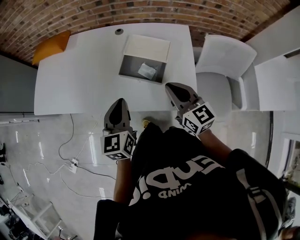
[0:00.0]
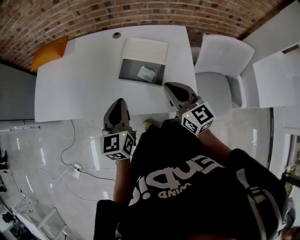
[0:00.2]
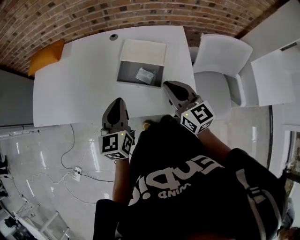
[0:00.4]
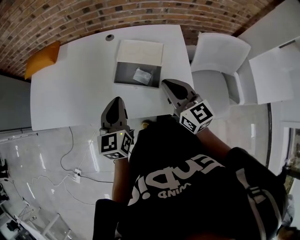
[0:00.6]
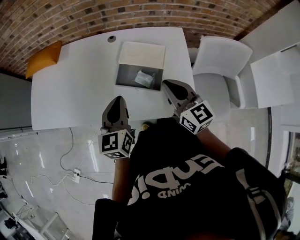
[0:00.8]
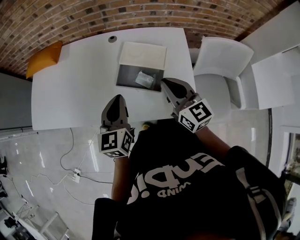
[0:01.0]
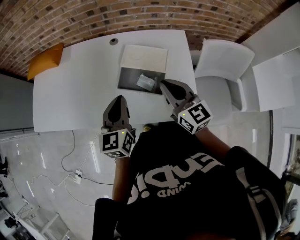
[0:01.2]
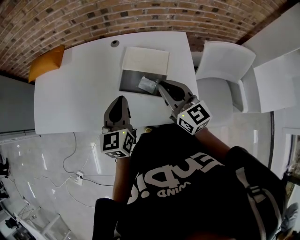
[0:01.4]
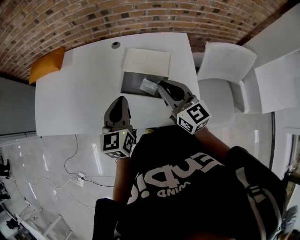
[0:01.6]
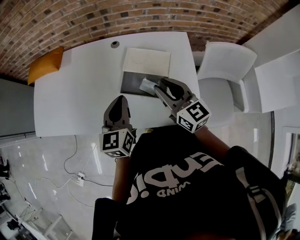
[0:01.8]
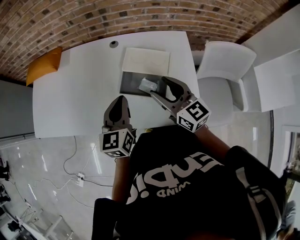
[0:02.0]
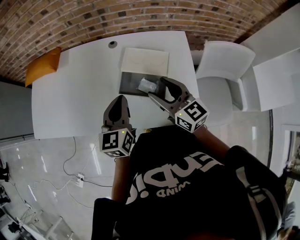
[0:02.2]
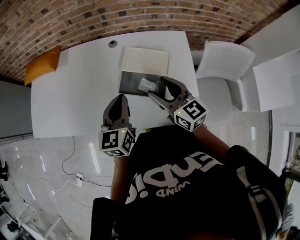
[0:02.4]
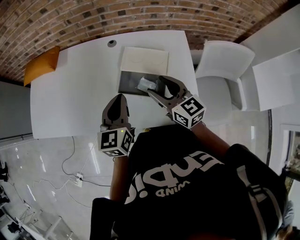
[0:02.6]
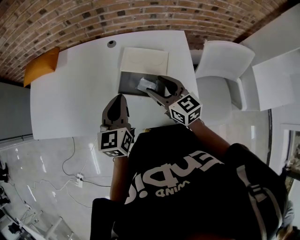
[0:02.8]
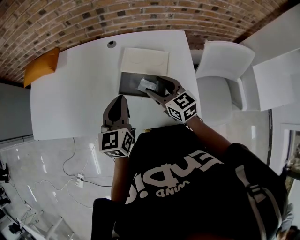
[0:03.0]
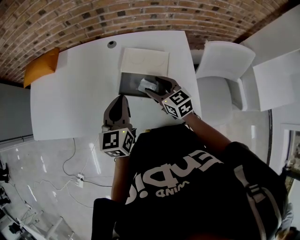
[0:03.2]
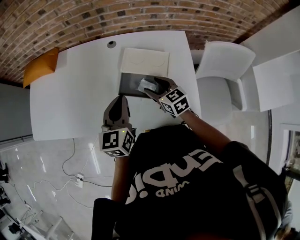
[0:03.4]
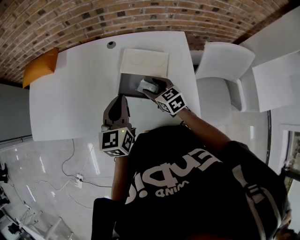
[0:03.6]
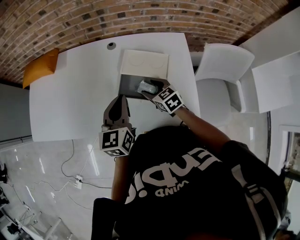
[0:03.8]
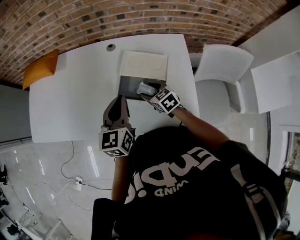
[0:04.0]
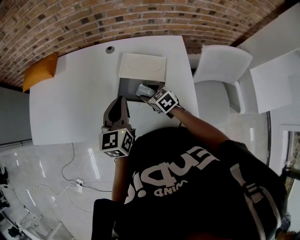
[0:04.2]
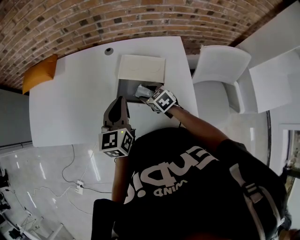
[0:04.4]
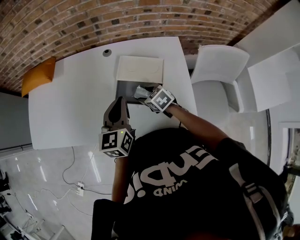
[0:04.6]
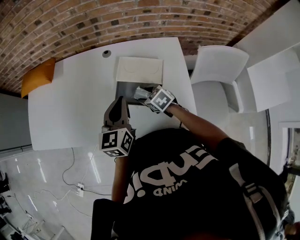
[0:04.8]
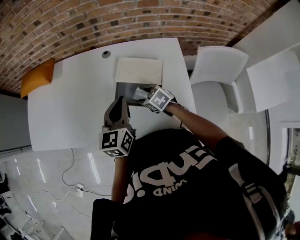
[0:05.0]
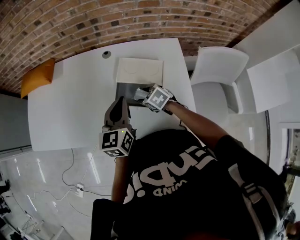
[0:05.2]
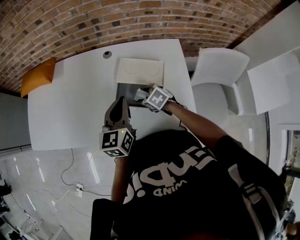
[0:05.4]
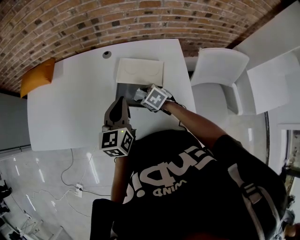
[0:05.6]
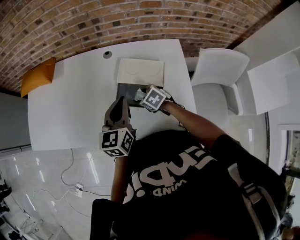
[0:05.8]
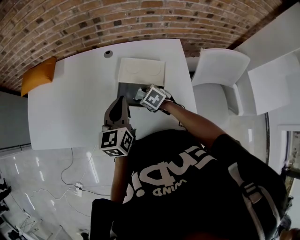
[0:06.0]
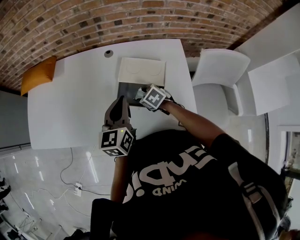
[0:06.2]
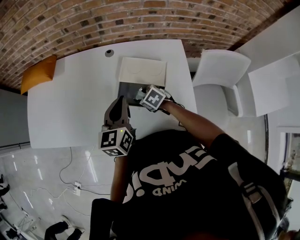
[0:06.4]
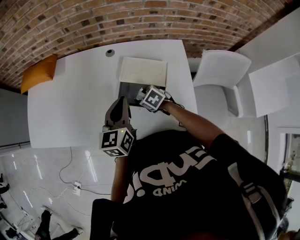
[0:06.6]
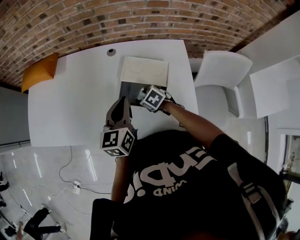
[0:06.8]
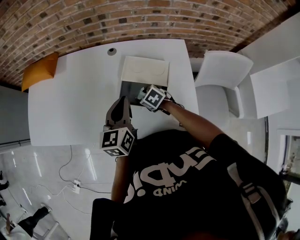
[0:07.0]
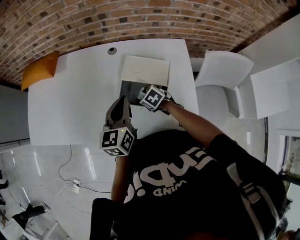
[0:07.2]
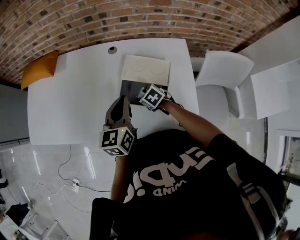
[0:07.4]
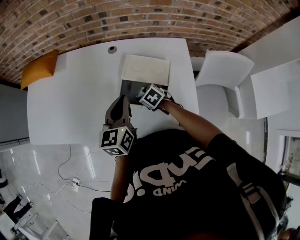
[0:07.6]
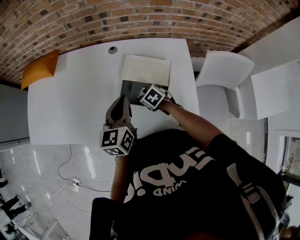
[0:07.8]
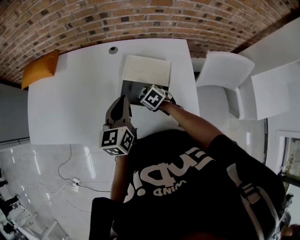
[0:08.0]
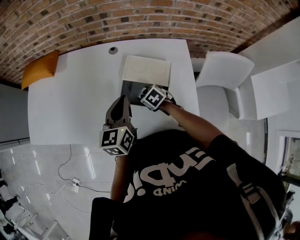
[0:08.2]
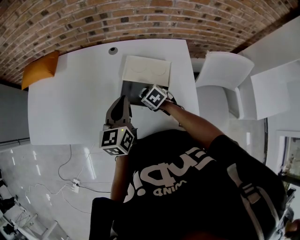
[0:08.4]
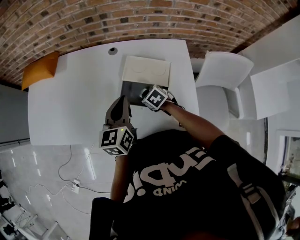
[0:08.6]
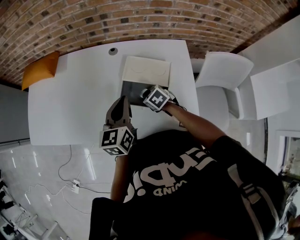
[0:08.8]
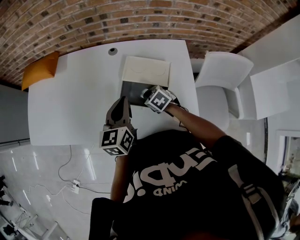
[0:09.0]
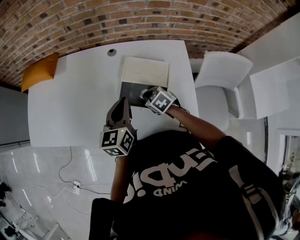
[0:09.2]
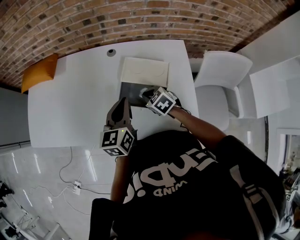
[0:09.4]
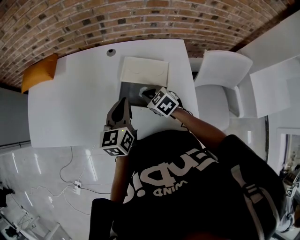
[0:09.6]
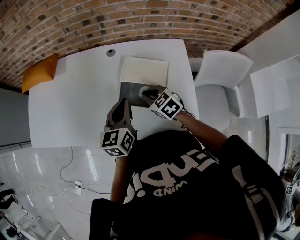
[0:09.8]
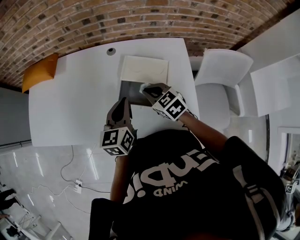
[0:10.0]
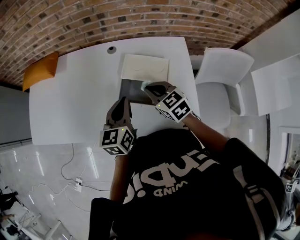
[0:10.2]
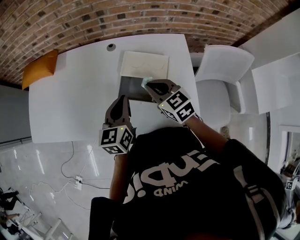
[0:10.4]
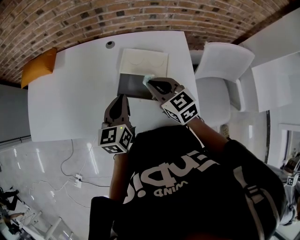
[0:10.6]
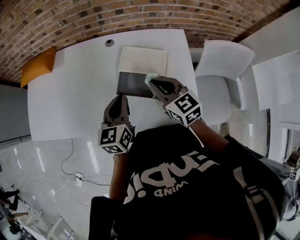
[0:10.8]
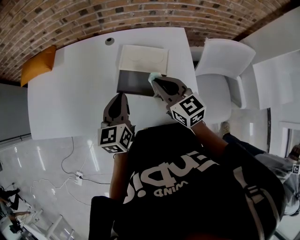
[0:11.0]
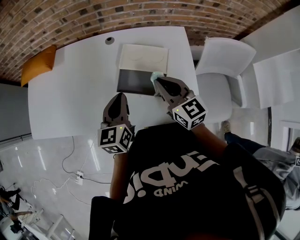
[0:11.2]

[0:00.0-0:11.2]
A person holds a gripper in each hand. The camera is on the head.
0:00.0 to 0:01.6: The grippers both shift forward by some 10 cm.
0:01.6 to 0:03.2: The right gripper travels downward by approximately 10 cm, and opens its fingers.
0:03.2 to 0:04.8: The right gripper moves downward, approximately 10 cm, and turns by approximately 30 degrees.
0:04.8 to 0:06.4: There are only small adjustments of the grippers.
0:06.4 to 0:08.0: The right gripper closes.
0:08.0 to 0:09.6: The right gripper goes about 10 cm upward.
0:09.6 to 0:11.2: The right gripper is displaced upward by approximately 15 cm, and points its fingers approximately 40 degrees further upward.

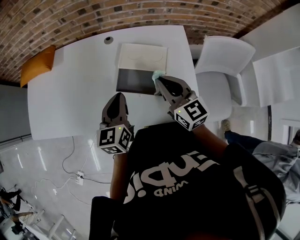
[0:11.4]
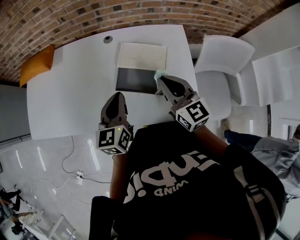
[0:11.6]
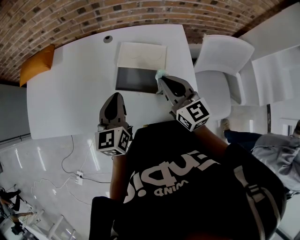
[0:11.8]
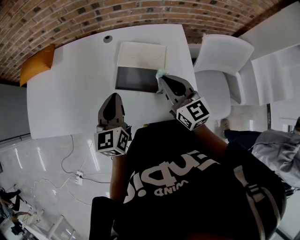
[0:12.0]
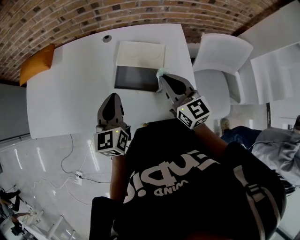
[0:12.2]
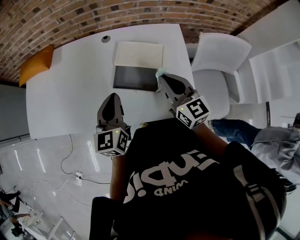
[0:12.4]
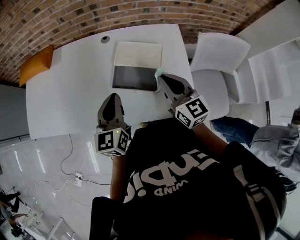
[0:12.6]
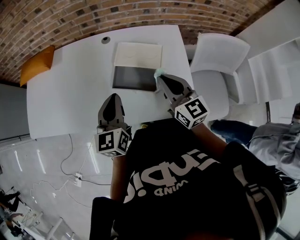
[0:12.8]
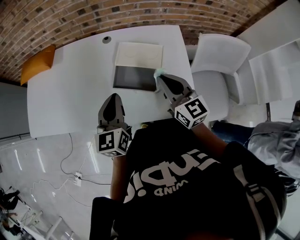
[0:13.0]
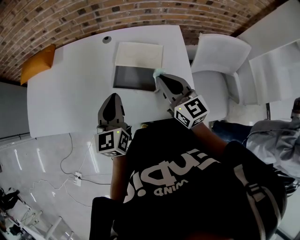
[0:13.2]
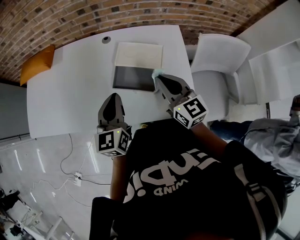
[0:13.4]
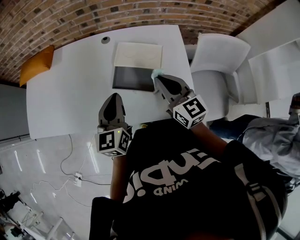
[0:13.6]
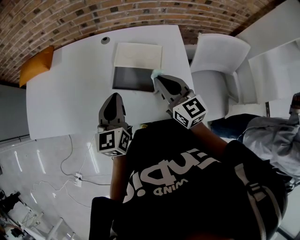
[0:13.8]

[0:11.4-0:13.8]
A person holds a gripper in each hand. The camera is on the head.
0:11.4 to 0:12.6: The grippers move only a little.
0:12.6 to 0:13.8: The two grippers keep their place.

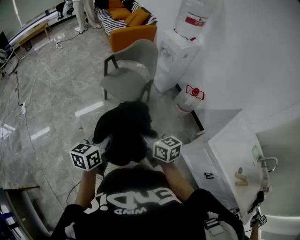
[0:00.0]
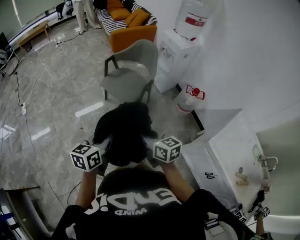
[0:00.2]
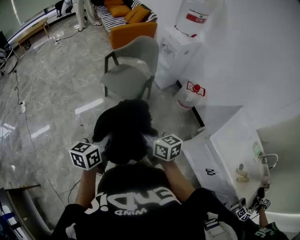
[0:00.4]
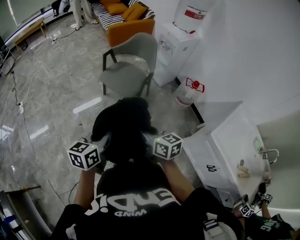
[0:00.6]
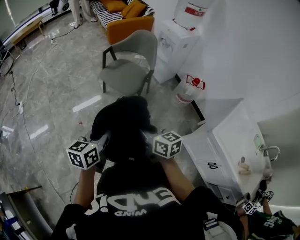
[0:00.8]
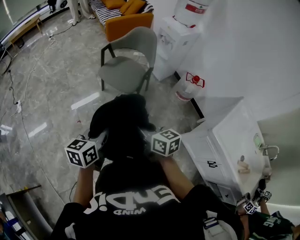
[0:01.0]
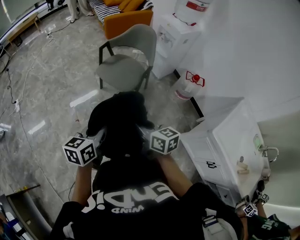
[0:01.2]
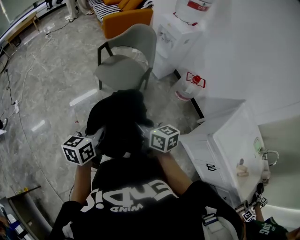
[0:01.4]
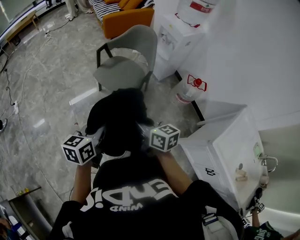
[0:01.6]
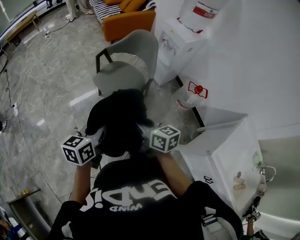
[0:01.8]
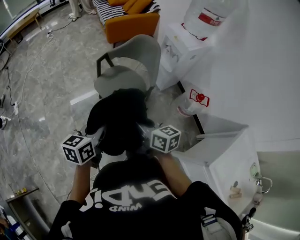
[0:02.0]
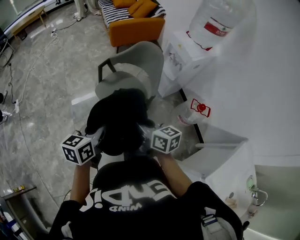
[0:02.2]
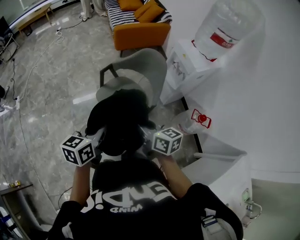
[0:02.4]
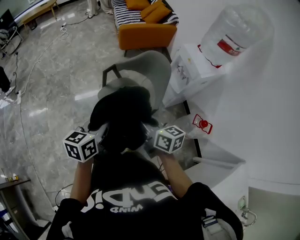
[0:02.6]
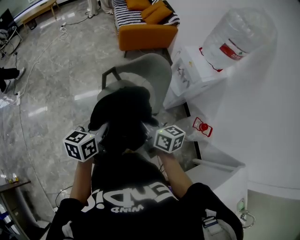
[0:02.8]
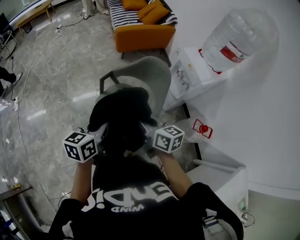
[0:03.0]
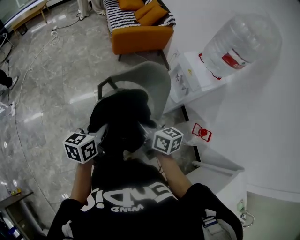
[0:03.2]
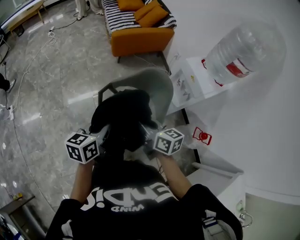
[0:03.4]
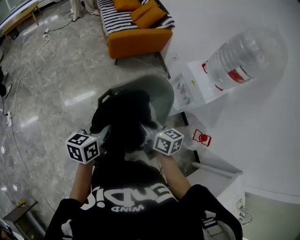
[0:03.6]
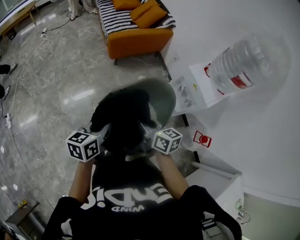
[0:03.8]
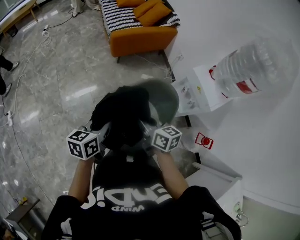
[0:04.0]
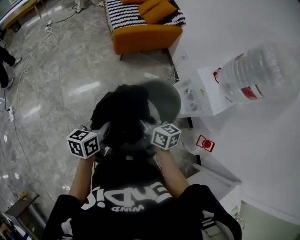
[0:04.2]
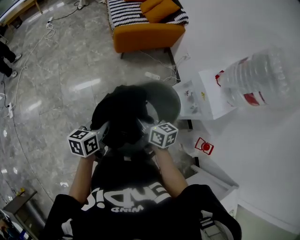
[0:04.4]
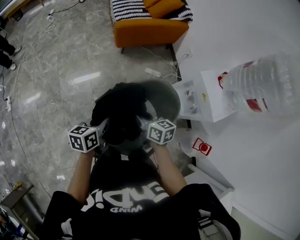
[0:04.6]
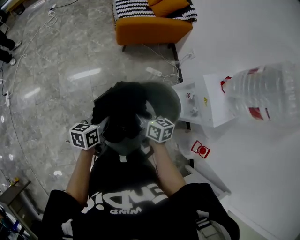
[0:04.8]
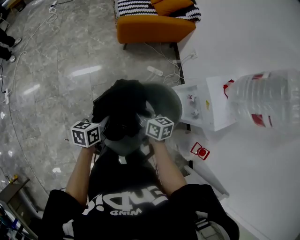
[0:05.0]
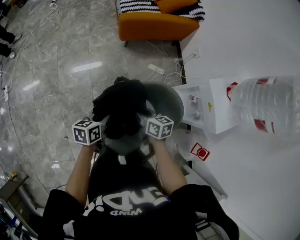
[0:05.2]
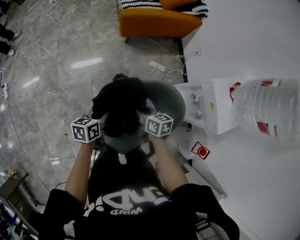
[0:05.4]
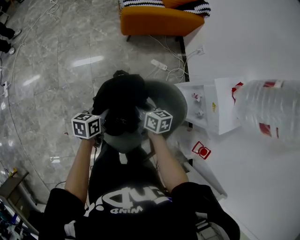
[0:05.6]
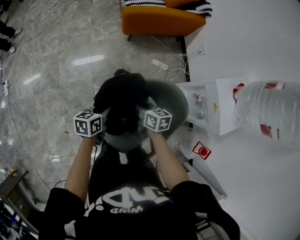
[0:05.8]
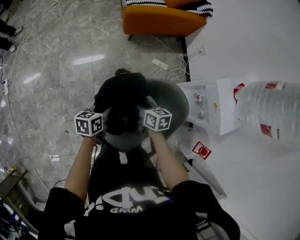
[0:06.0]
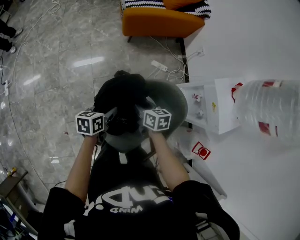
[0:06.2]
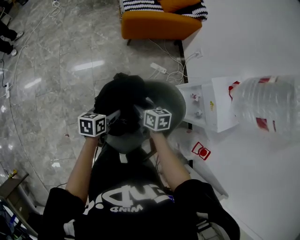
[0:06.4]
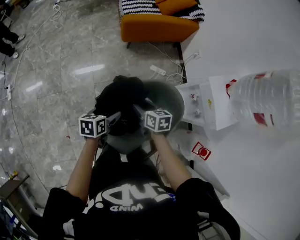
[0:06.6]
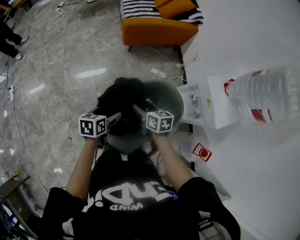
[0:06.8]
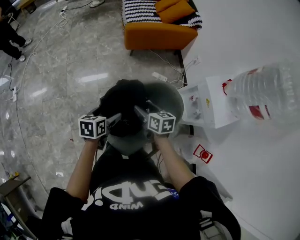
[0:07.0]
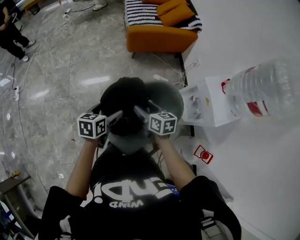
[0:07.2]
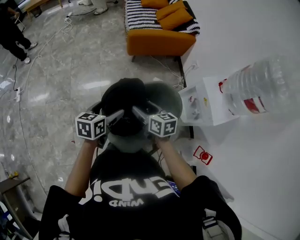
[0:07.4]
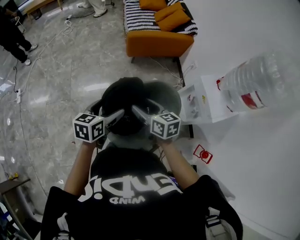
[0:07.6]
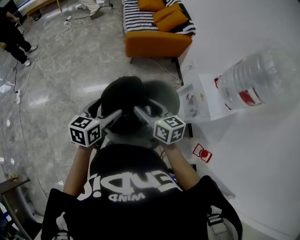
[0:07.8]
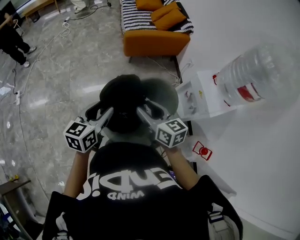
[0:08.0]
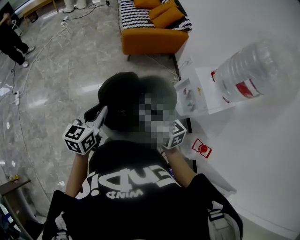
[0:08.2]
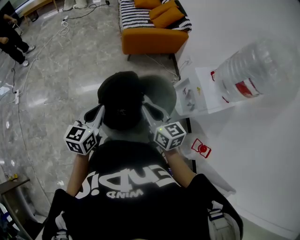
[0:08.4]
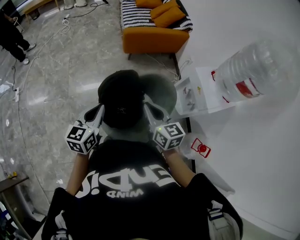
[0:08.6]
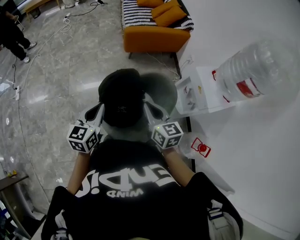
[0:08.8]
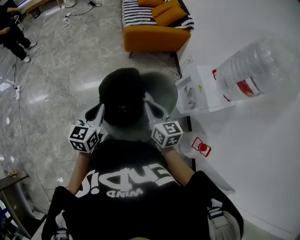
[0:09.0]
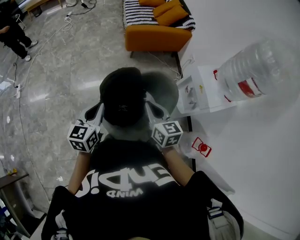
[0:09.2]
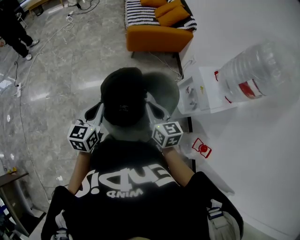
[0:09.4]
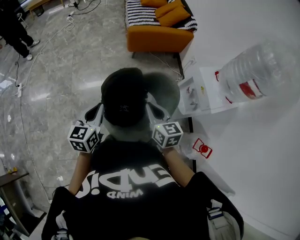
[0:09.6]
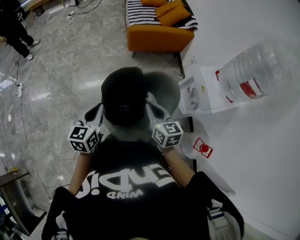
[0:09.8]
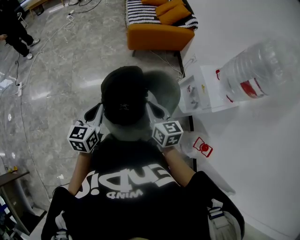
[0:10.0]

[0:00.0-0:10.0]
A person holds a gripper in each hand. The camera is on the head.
0:00.0 to 0:01.4: Both grippers move forward, approximately 5 cm.
0:01.4 to 0:02.8: The grippers both shift forward by about 40 cm.
0:02.8 to 0:04.2: Both grippers travel together forward, approximately 35 cm.
0:04.2 to 0:05.8: The grippers both shift downward and forward by some 25 cm.
0:05.8 to 0:07.2: The two grippers go approximately 15 cm upward and backward. The right gripper opens up; the left gripper opens up.
0:07.2 to 0:08.6: Both grippers move upward and backward, approximately 15 cm. The right gripper rotates roughly 20 degrees, and closes up; the left gripper rotates some 30 degrees, and closes up.
0:08.6 to 0:10.0: The grippers make only small movements.
